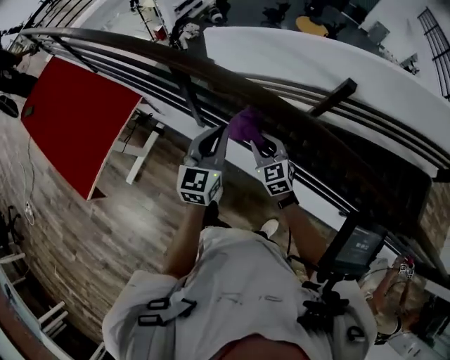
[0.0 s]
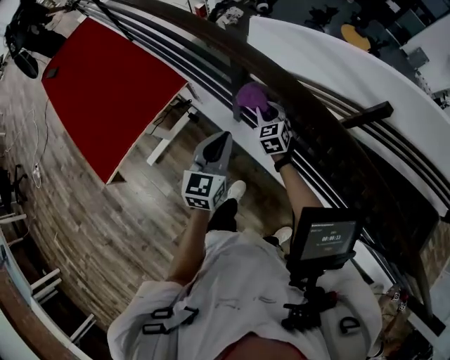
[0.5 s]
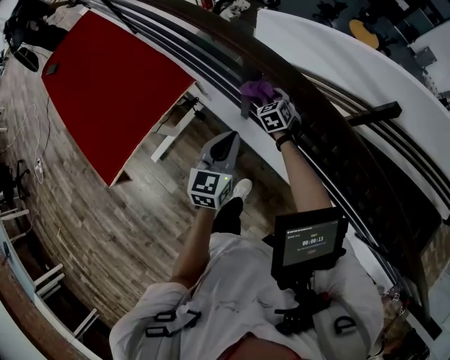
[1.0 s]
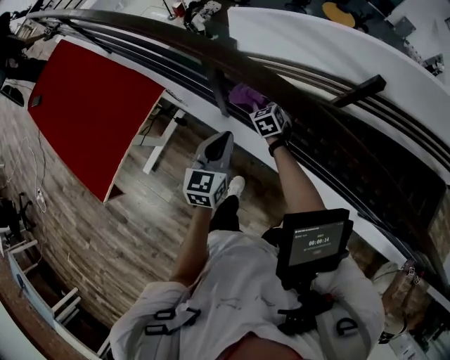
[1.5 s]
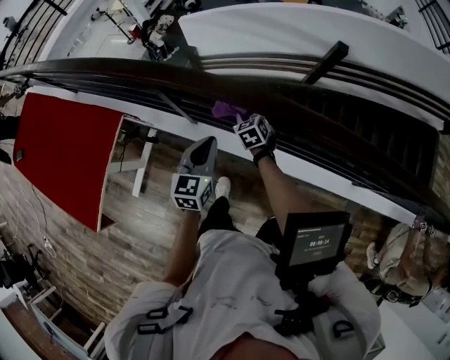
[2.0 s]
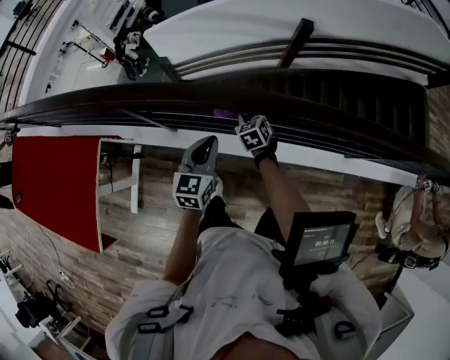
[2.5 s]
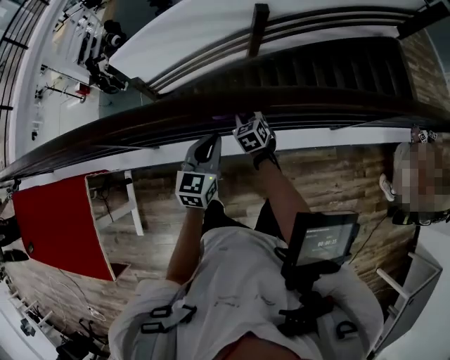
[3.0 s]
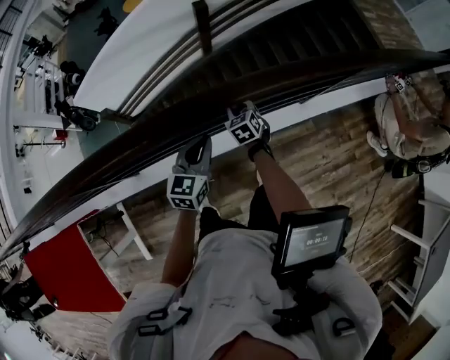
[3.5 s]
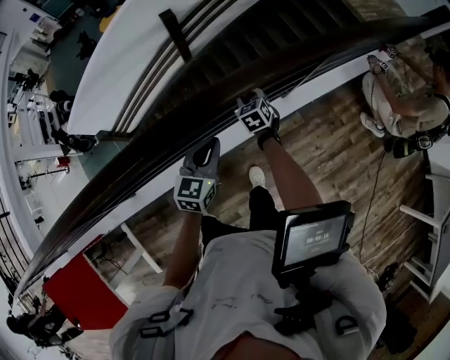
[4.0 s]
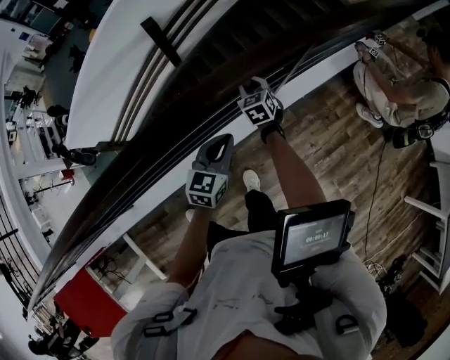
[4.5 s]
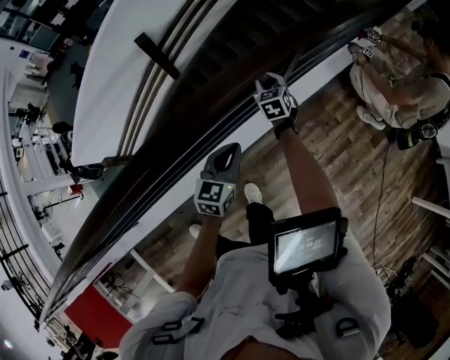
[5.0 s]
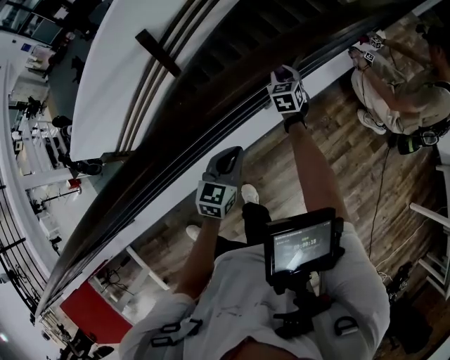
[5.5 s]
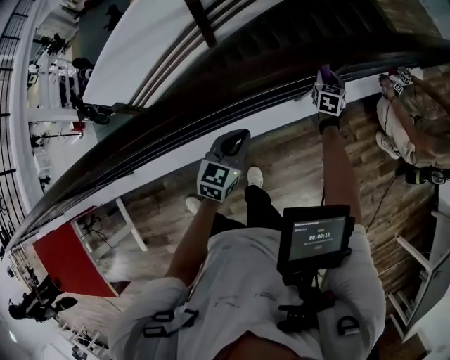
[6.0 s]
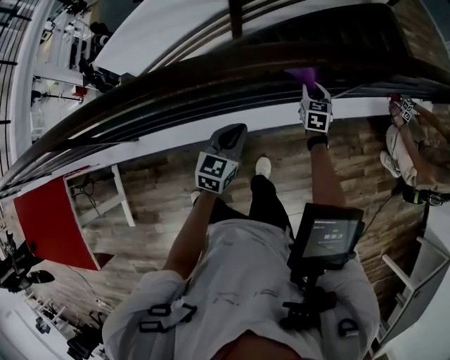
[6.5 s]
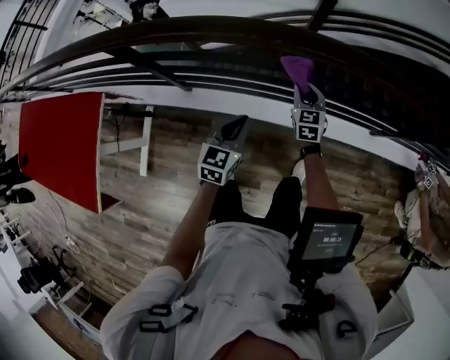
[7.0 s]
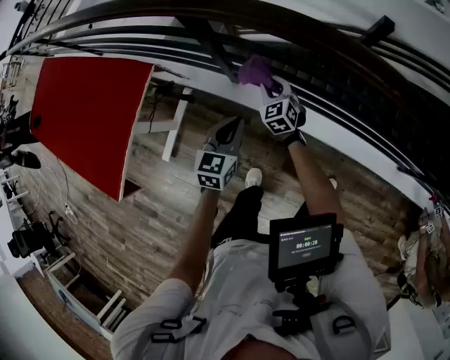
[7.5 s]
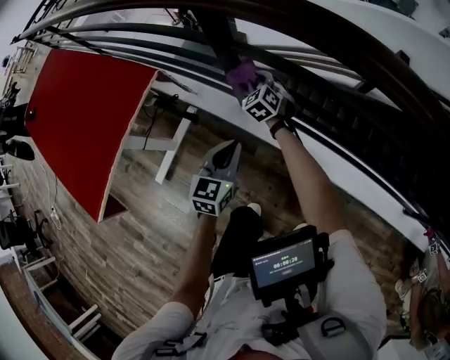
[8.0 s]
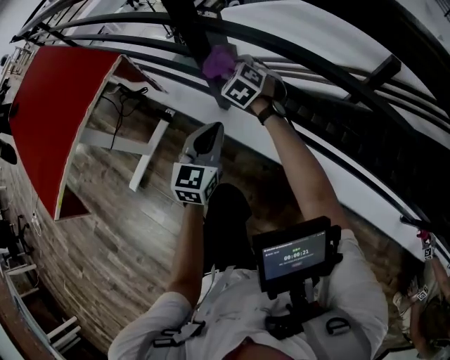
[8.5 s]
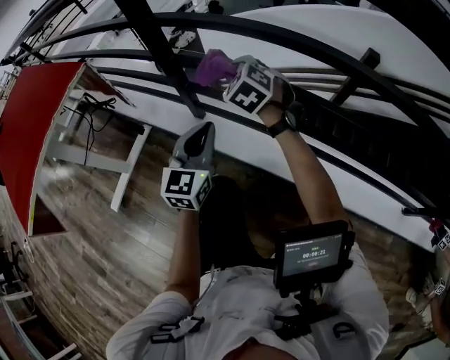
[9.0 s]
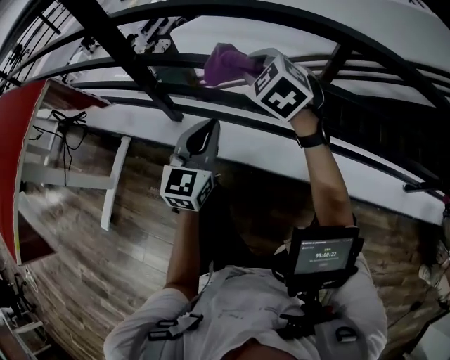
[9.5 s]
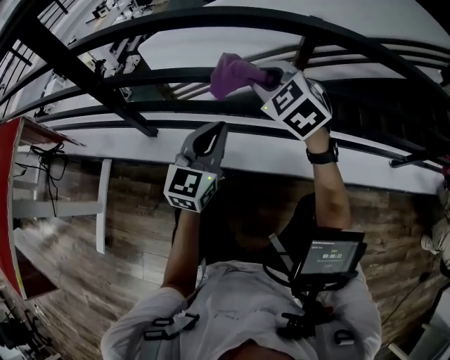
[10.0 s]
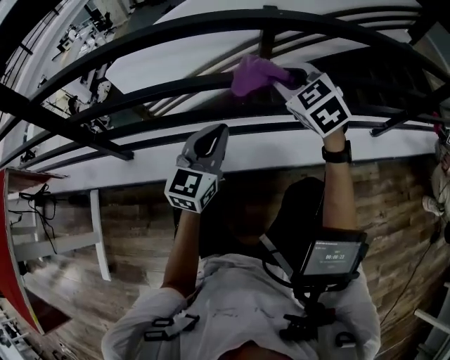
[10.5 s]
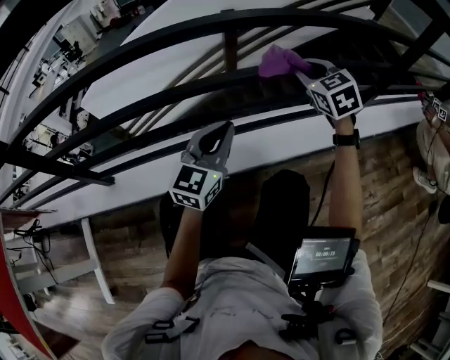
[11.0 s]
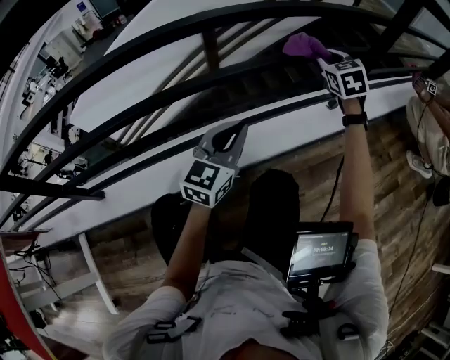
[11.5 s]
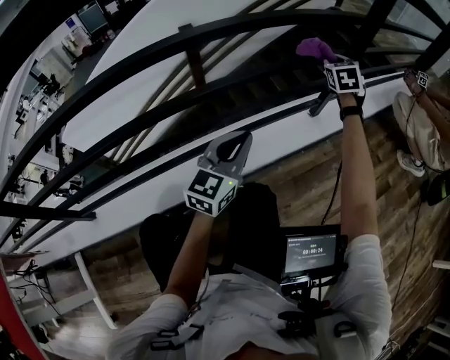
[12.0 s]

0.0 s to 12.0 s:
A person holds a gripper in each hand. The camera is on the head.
0.0 to 2.0 s: The left gripper goes approximately 10 cm downward, and moves some 15 cm to the left and comes back, while the right gripper travels downward and forward by about 20 cm, and turns by roughly 20 degrees.
2.0 to 4.0 s: The two grippers travel together, about 60 cm. The left gripper changes its angle by some 50 degrees. The right gripper swivels some 50 degrees.
4.0 to 6.0 s: The right gripper travels to the right and forward by roughly 35 cm, and changes its angle by approximately 30 degrees. The left gripper travels to the right and forward by about 15 cm.
6.0 to 8.0 s: Both grippers are carried some 1 m. The right gripper swivels approximately 90 degrees, while the left gripper changes its angle by roughly 60 degrees.
8.0 to 10.0 s: The right gripper heads to the right and backward, covering approximately 40 cm; the left gripper goes about 30 cm to the right and downward, and turns by about 30 degrees.
10.0 to 12.0 s: Both grippers are carried approximately 60 cm. The left gripper turns by about 40 degrees, while the right gripper changes its angle by approximately 70 degrees.

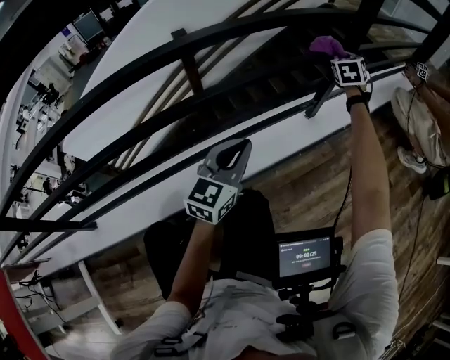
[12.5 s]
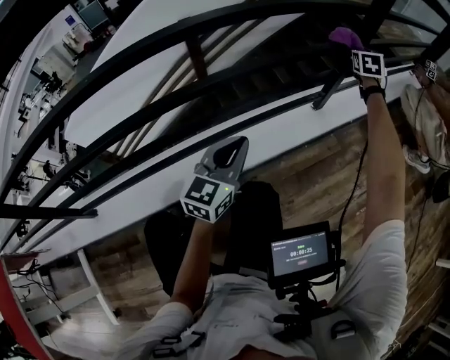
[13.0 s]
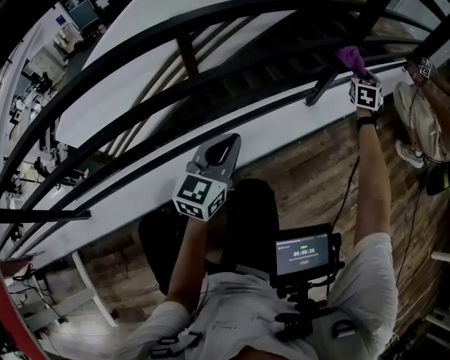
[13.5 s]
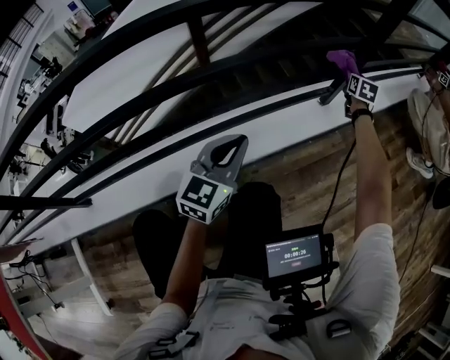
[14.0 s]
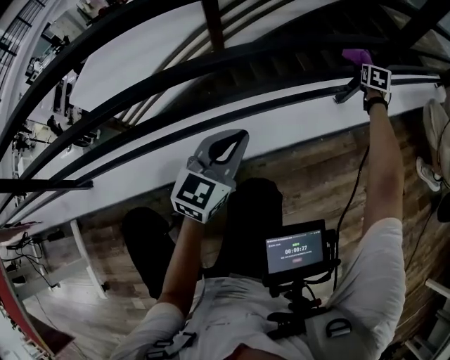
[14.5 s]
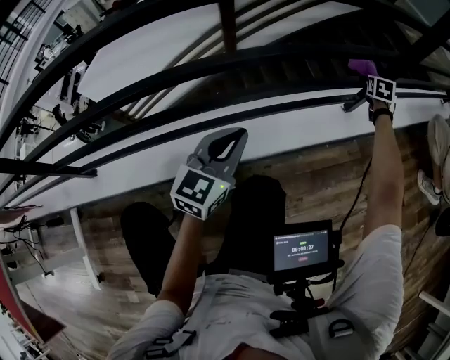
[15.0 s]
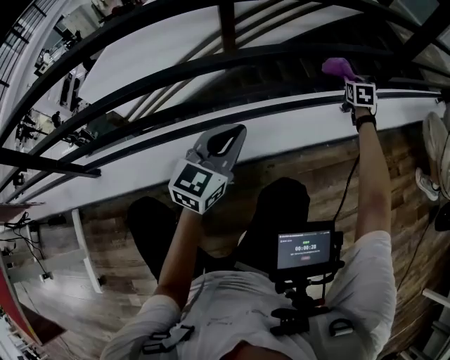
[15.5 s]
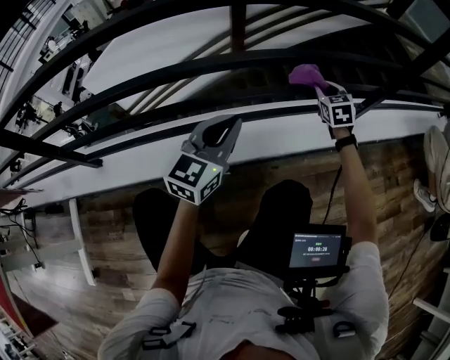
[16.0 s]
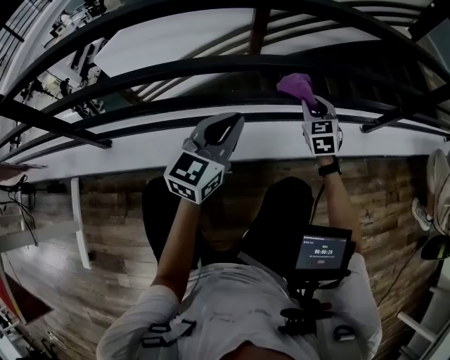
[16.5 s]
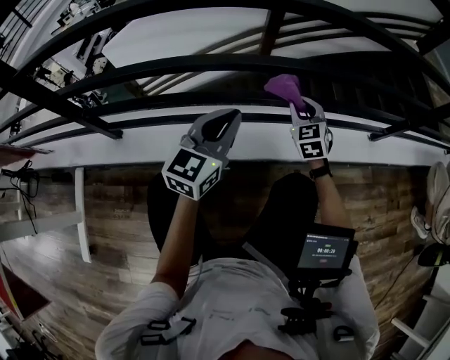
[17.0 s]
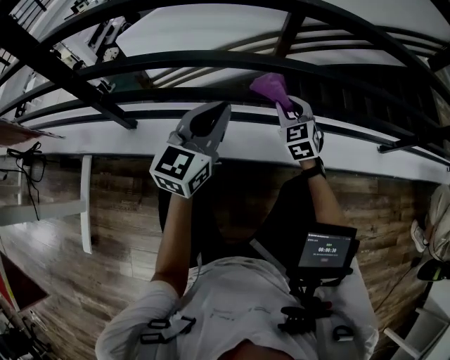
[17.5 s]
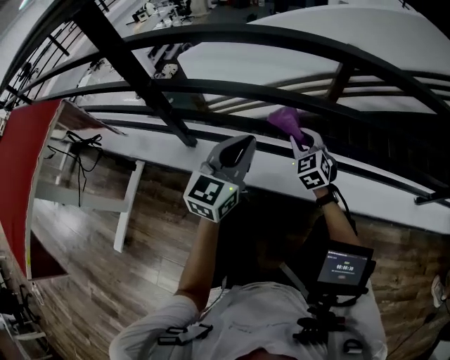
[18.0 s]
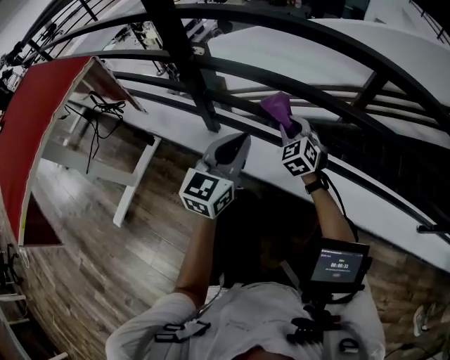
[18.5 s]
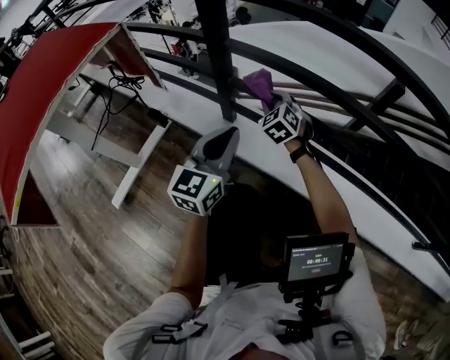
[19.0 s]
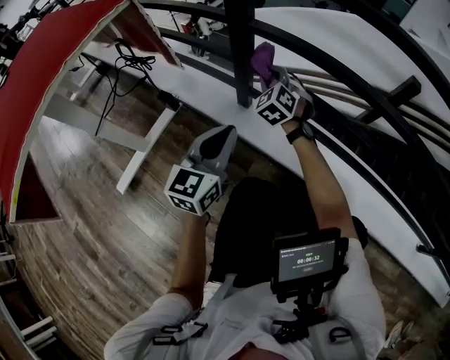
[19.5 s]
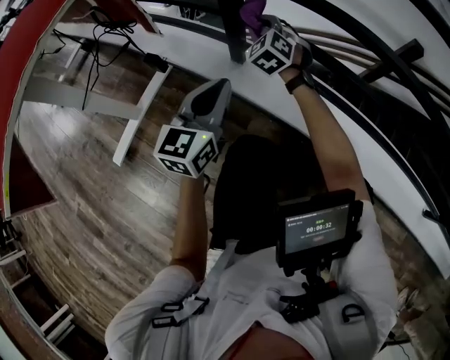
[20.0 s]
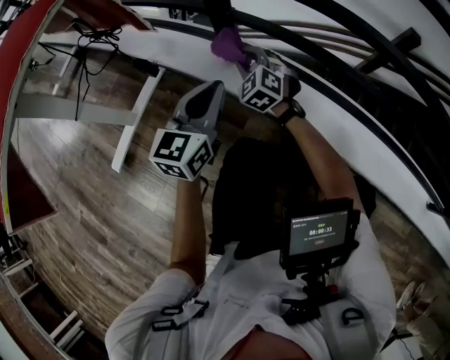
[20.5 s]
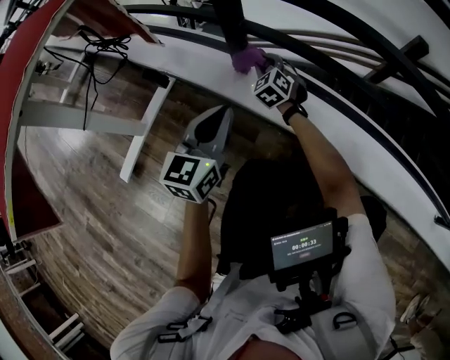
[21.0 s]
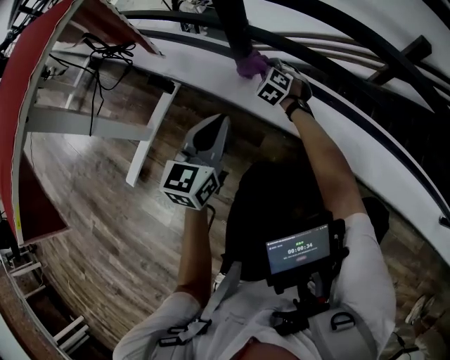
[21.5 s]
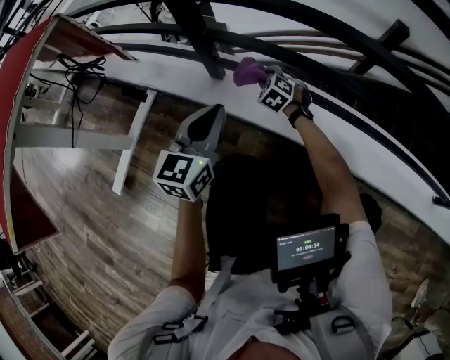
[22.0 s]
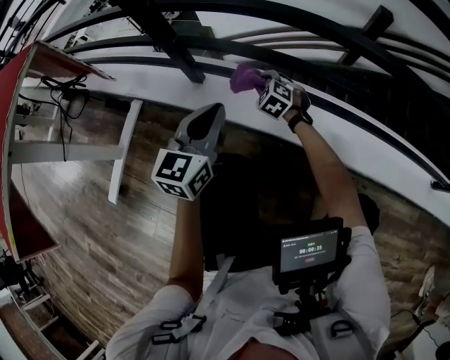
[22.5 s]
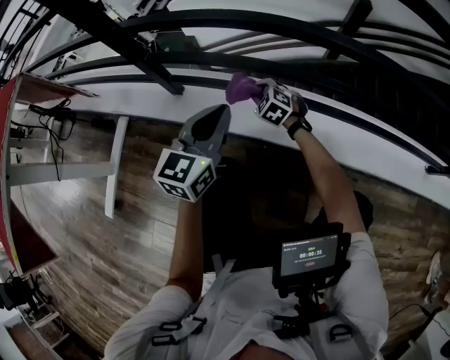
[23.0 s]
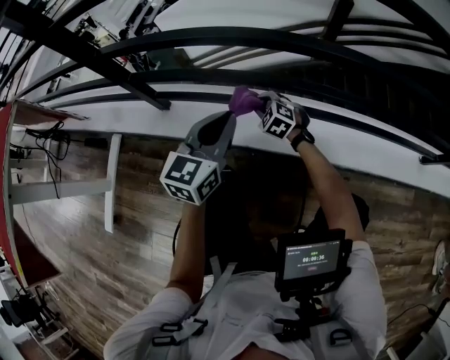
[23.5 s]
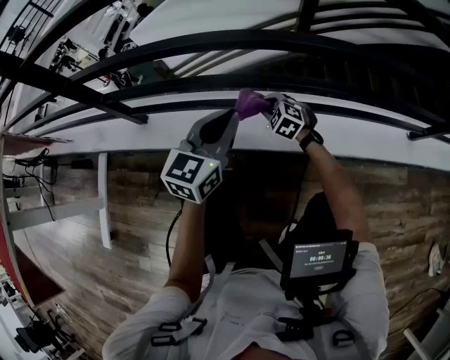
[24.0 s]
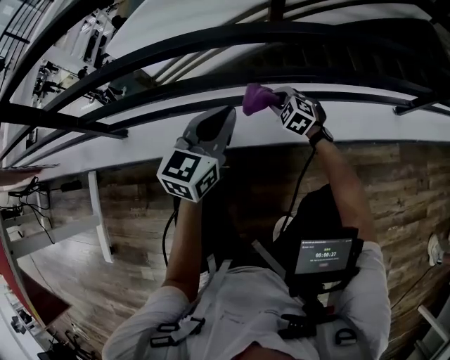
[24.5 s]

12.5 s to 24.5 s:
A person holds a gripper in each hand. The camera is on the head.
12.5 to 14.5 s: The right gripper is displaced downward by some 15 cm. The left gripper is displaced downward by about 5 cm.
14.5 to 16.5 s: The right gripper moves approximately 50 cm, and rotates about 40 degrees. The left gripper moves about 20 cm.
16.5 to 18.5 s: The left gripper moves about 40 cm, and swivels roughly 30 degrees. The right gripper moves approximately 50 cm, and swivels roughly 40 degrees.
18.5 to 20.5 s: The right gripper heads to the left, covering some 25 cm, and turns by some 20 degrees. Meanwhile the left gripper goes approximately 15 cm to the left and downward.
20.5 to 22.5 s: The left gripper shifts about 10 cm to the right, while the right gripper goes about 20 cm to the right and downward.
22.5 to 24.5 s: Both grippers move to the right, roughly 35 cm. The left gripper rotates roughly 30 degrees.

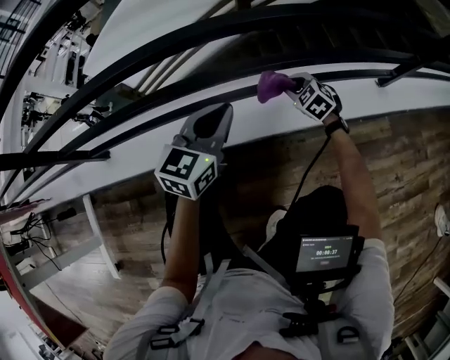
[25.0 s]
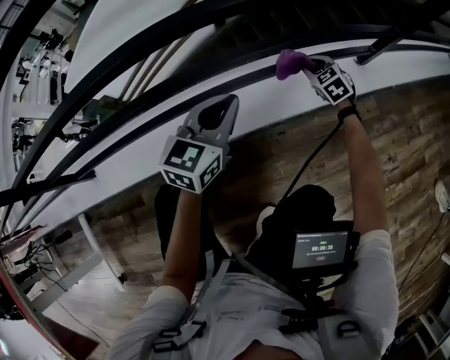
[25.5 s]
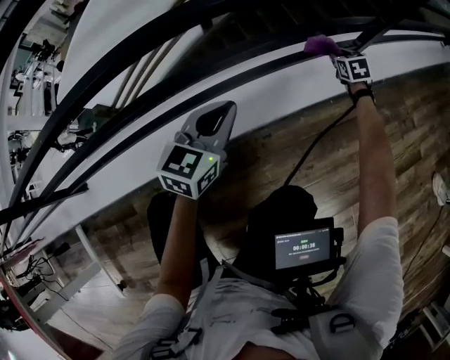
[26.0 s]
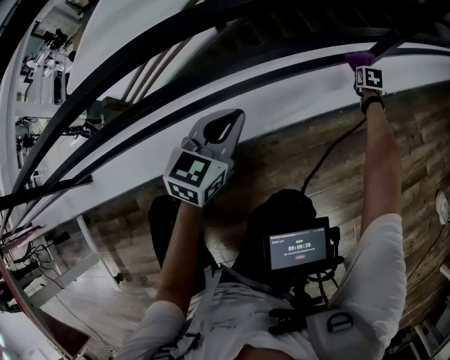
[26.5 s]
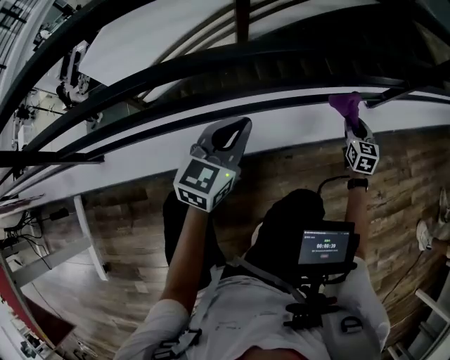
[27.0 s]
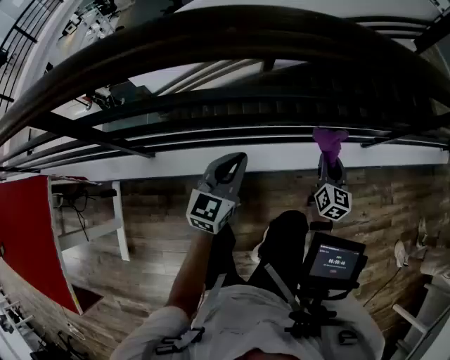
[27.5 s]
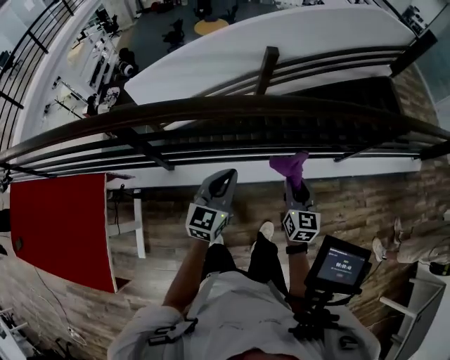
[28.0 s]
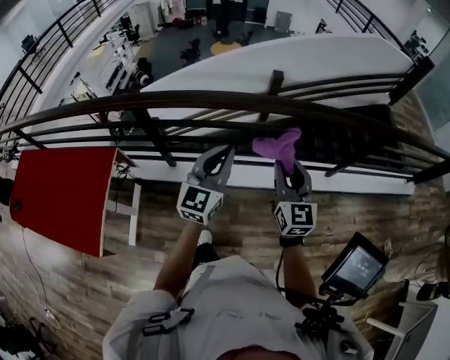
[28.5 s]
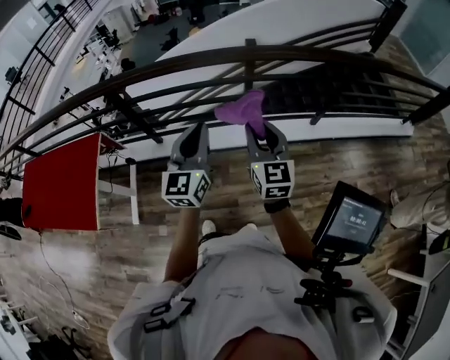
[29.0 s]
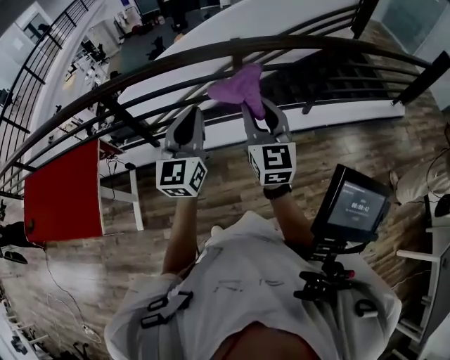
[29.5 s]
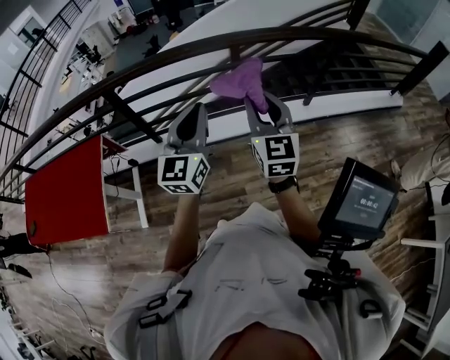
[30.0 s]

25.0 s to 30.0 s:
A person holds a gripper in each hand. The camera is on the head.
25.0 to 27.5 s: The right gripper travels upward by roughly 35 cm, and points its fingers approximately 30 degrees further upward. Meanwhile the left gripper travels upward by about 25 cm.
27.5 to 30.0 s: Both grippers move upward and backward, some 60 cm. The right gripper rotates roughly 30 degrees; the left gripper changes its angle by approximately 20 degrees.
